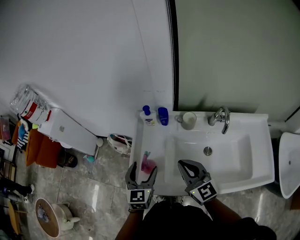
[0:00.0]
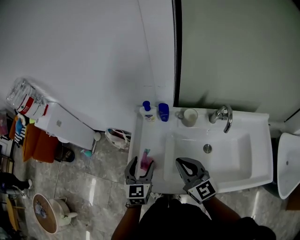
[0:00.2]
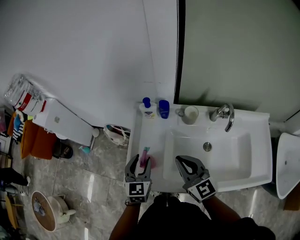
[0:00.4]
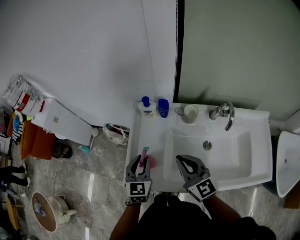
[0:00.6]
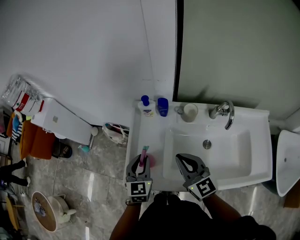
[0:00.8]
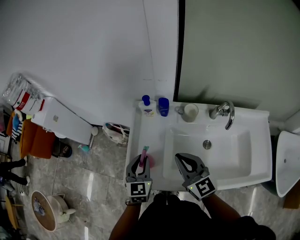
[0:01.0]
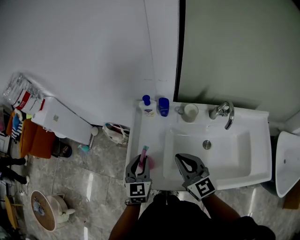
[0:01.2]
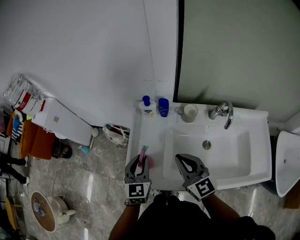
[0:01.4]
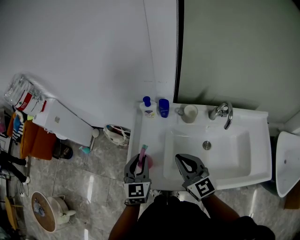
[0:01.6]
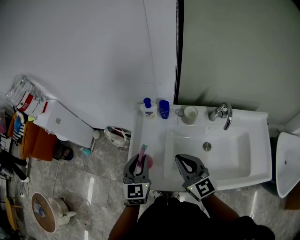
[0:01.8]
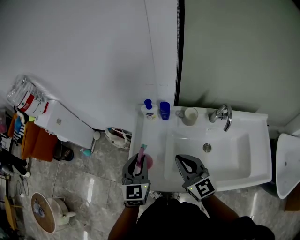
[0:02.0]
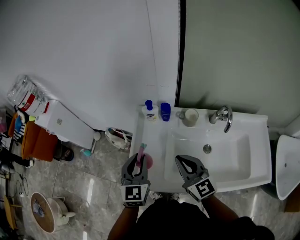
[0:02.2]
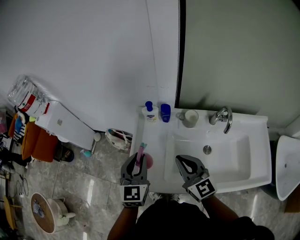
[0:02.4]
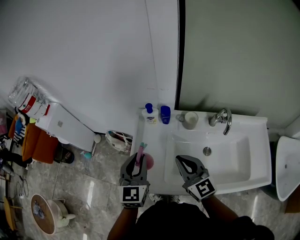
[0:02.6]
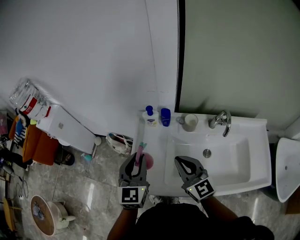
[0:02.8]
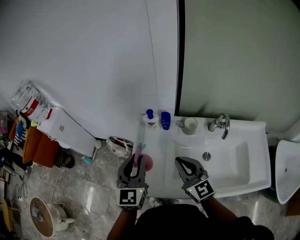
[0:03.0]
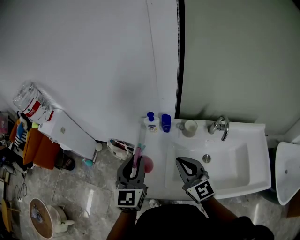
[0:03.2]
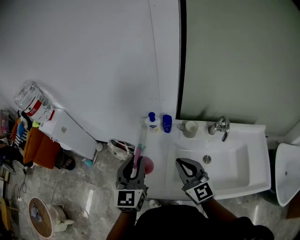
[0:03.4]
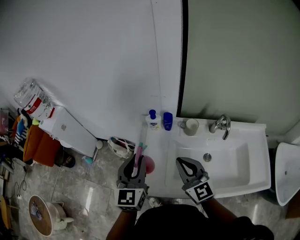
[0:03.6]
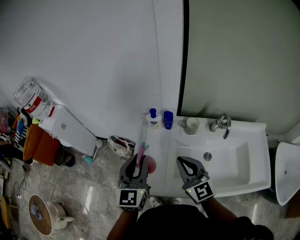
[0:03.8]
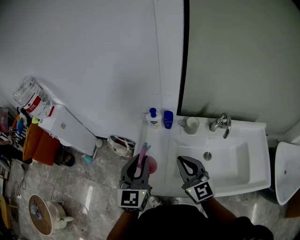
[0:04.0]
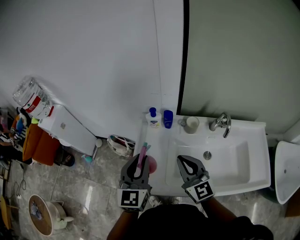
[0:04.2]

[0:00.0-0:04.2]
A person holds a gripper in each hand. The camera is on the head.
0:00.0 to 0:01.4: The left gripper closes up.
0:01.4 to 0:02.8: The left gripper goes approximately 10 cm upward.
0:02.8 to 0:04.2: The grippers make only small movements.

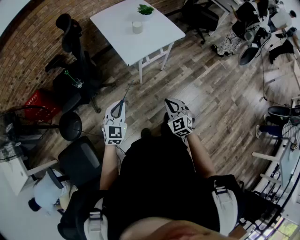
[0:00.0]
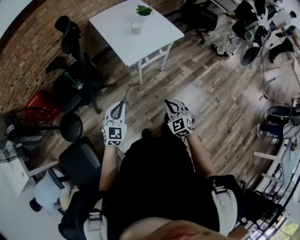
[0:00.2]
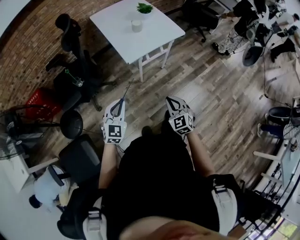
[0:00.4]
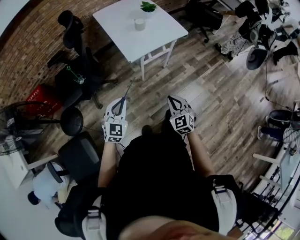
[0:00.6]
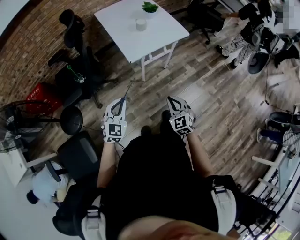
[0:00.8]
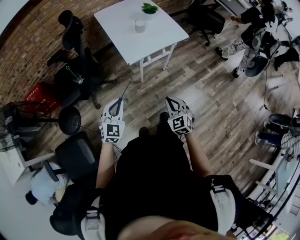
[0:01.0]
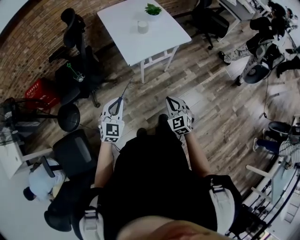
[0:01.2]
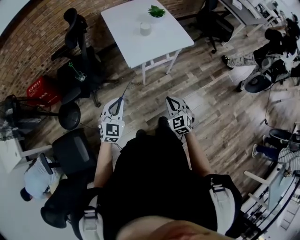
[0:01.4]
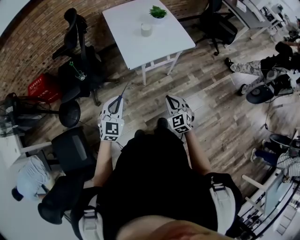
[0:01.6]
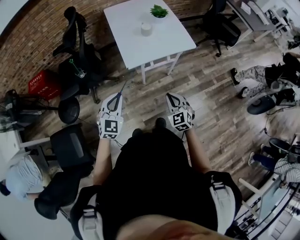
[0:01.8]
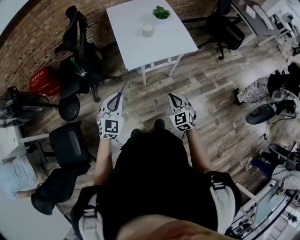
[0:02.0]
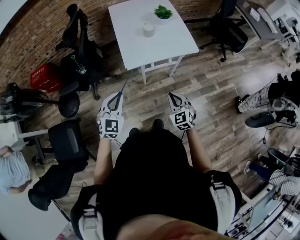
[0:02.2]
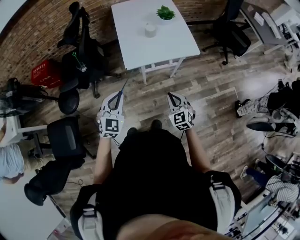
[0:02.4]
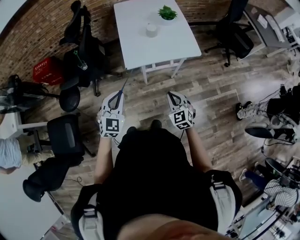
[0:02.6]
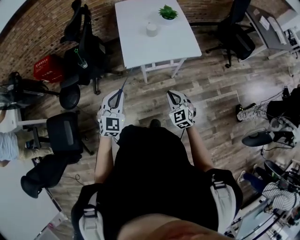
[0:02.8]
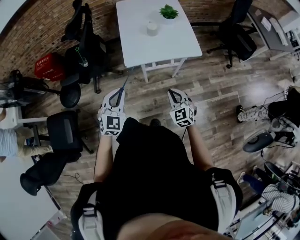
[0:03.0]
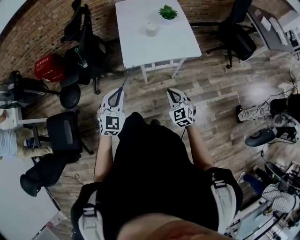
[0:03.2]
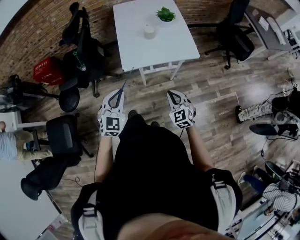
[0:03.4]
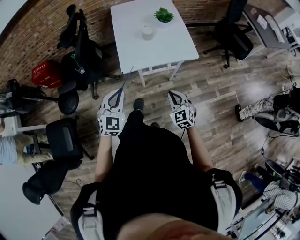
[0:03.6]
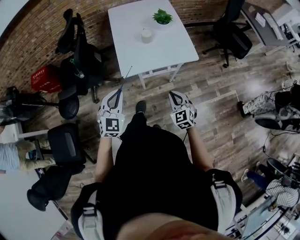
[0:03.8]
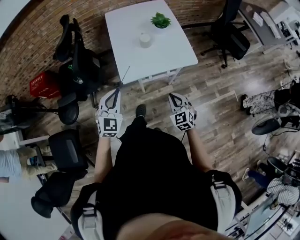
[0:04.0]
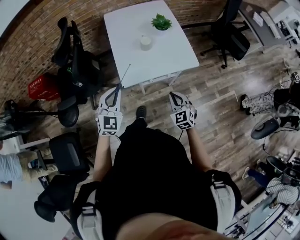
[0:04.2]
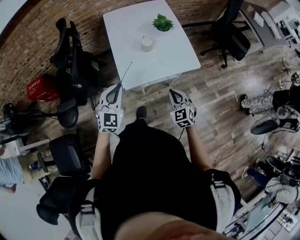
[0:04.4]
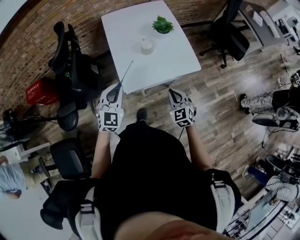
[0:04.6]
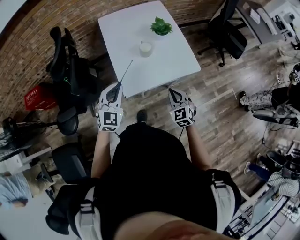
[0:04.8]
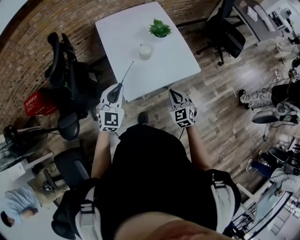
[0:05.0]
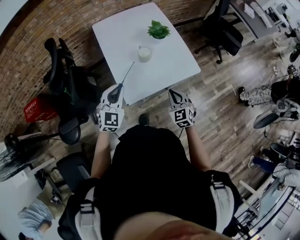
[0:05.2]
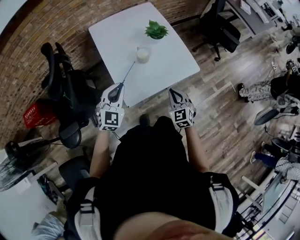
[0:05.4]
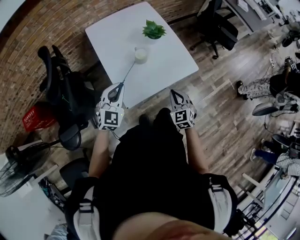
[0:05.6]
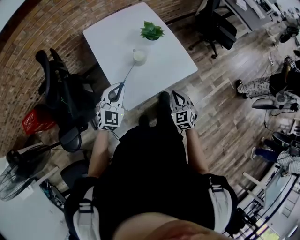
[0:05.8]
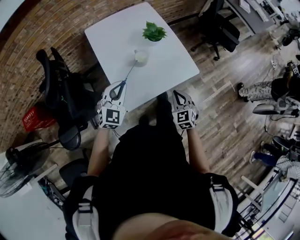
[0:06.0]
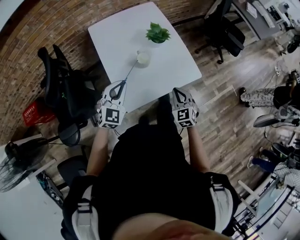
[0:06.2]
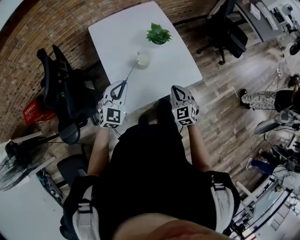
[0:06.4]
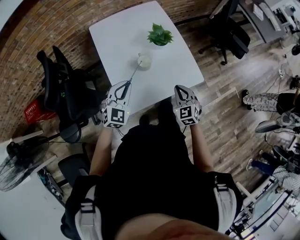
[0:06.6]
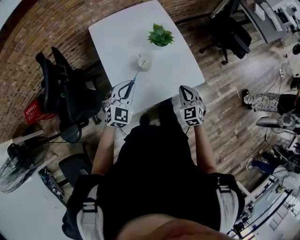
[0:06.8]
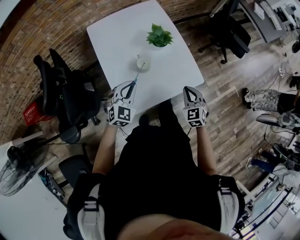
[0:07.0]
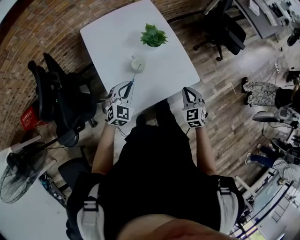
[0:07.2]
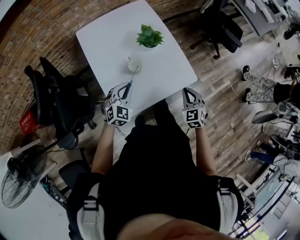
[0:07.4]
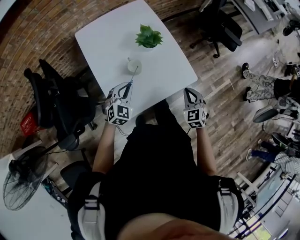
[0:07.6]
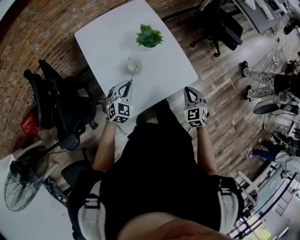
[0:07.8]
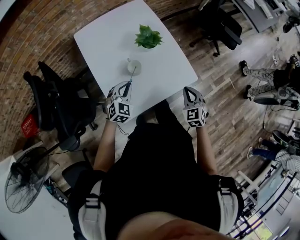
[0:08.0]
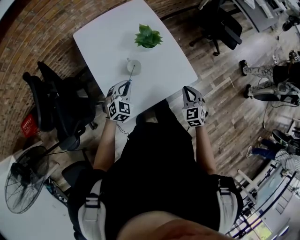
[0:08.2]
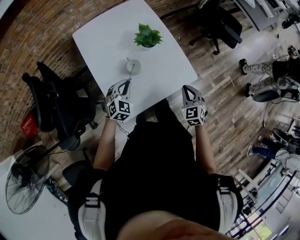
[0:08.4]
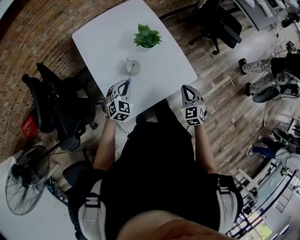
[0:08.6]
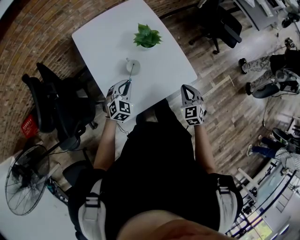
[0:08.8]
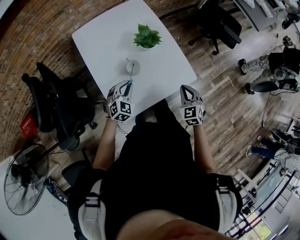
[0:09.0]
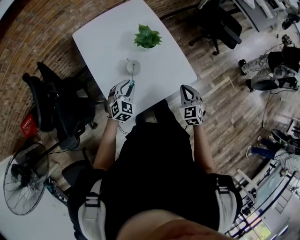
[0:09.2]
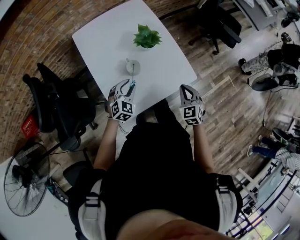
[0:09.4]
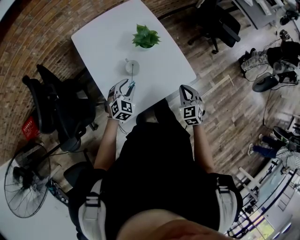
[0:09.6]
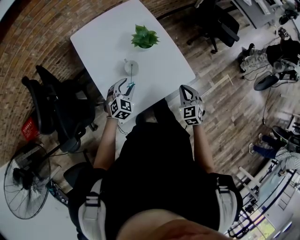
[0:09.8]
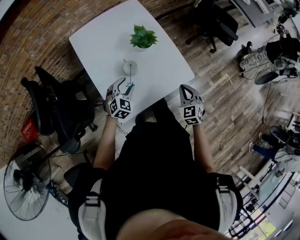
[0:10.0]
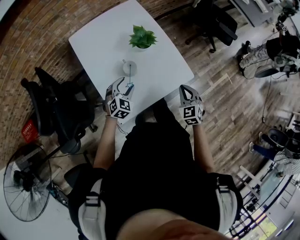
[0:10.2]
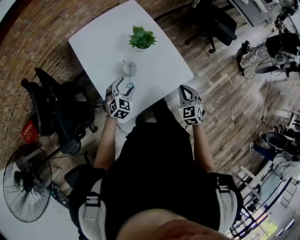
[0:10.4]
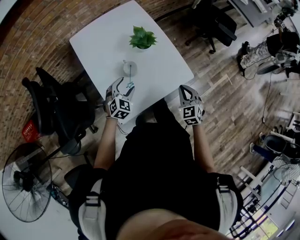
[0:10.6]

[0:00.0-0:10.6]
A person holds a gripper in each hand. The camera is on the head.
0:00.0 to 0:01.6: The right gripper goes roughly 15 cm forward and to the right. The left gripper moves to the right and forward, some 10 cm.
0:01.6 to 0:03.0: The left gripper moves to the right, about 10 cm; the right gripper goes about 15 cm to the right and forward.
0:03.0 to 0:04.6: Both grippers travel together forward, some 20 cm.
0:04.6 to 0:06.0: The right gripper heads forward, covering roughly 10 cm, while the left gripper goes approximately 15 cm forward.
0:06.0 to 0:07.6: The right gripper travels forward and to the right by roughly 15 cm; the left gripper travels forward, downward and to the right by about 15 cm.
0:07.6 to 0:09.0: The grippers stay close to where they were, moving slightly.
0:09.0 to 0:10.6: The left gripper opens its fingers.

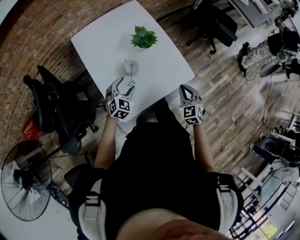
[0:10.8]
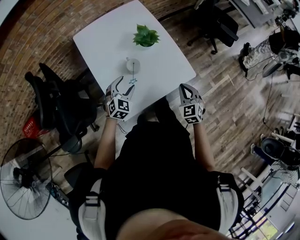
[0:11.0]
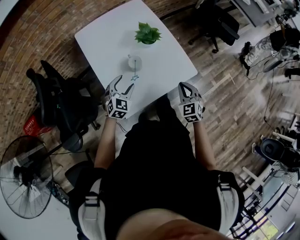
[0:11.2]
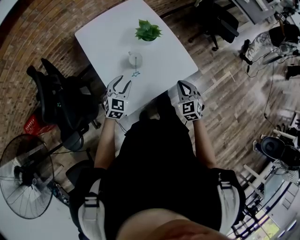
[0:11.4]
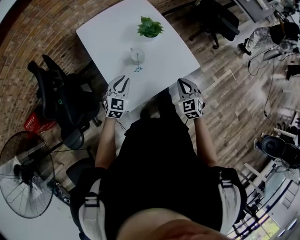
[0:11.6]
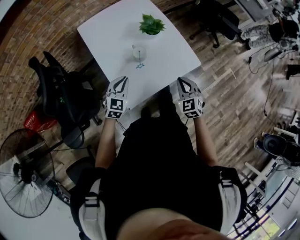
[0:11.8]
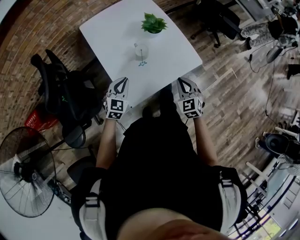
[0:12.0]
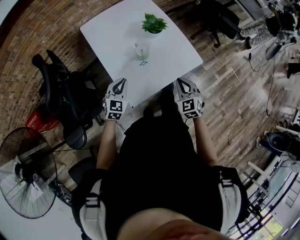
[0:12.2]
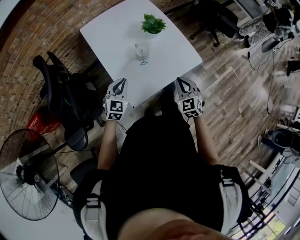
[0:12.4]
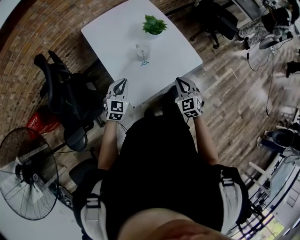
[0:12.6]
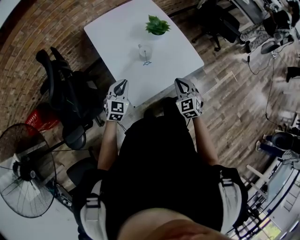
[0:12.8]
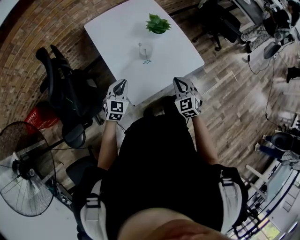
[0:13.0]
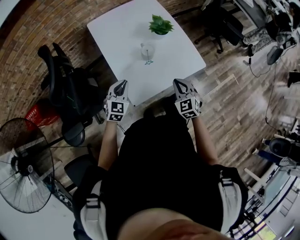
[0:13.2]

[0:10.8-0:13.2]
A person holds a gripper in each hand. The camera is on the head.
0:10.8 to 0:12.0: Both grippers travel together backward and to the left, roughly 10 cm. The left gripper closes up.
0:12.0 to 0:13.2: There are only small adjustments of the grippers.

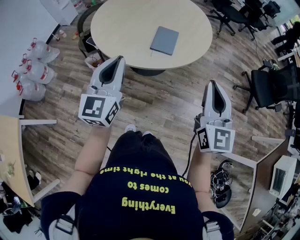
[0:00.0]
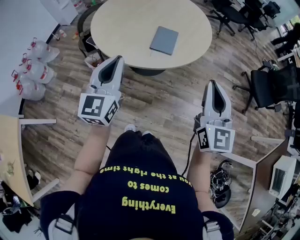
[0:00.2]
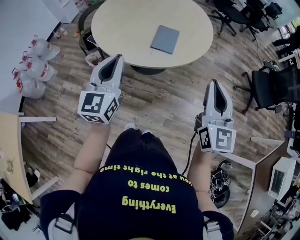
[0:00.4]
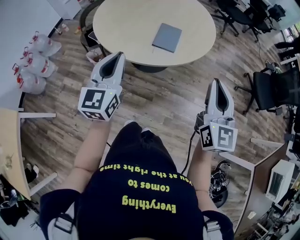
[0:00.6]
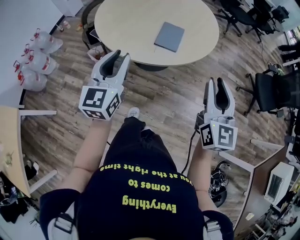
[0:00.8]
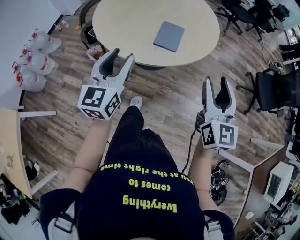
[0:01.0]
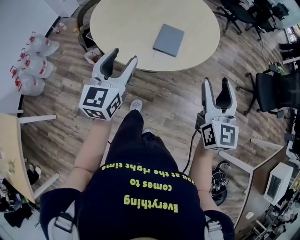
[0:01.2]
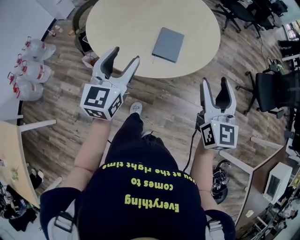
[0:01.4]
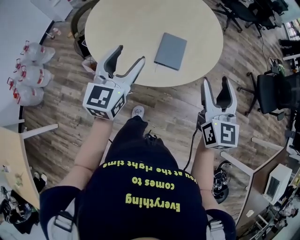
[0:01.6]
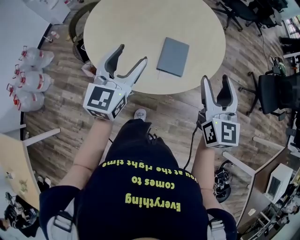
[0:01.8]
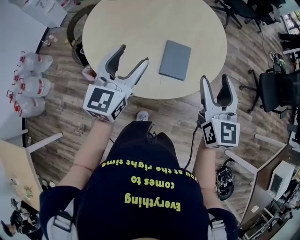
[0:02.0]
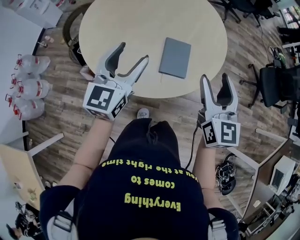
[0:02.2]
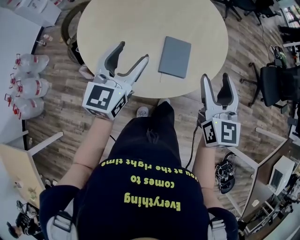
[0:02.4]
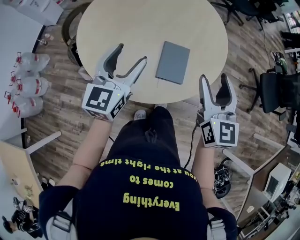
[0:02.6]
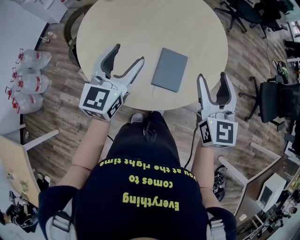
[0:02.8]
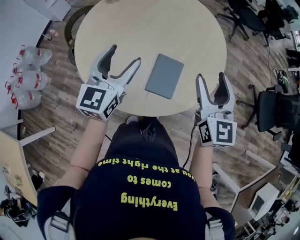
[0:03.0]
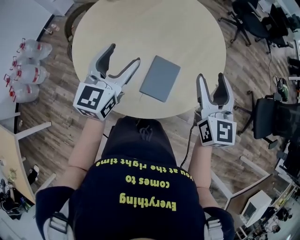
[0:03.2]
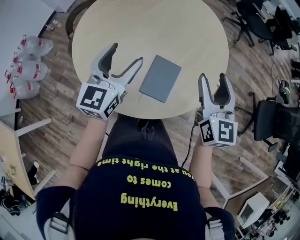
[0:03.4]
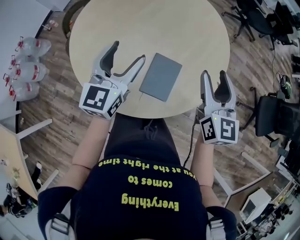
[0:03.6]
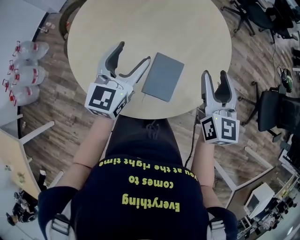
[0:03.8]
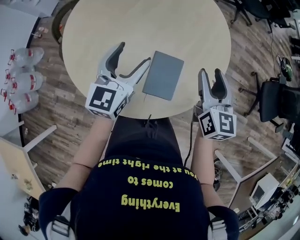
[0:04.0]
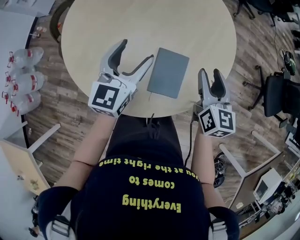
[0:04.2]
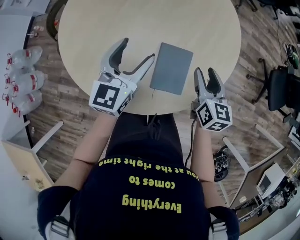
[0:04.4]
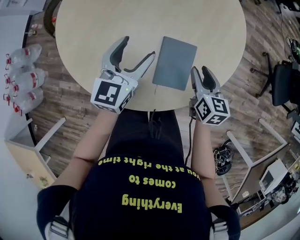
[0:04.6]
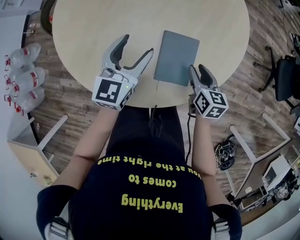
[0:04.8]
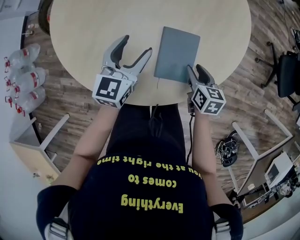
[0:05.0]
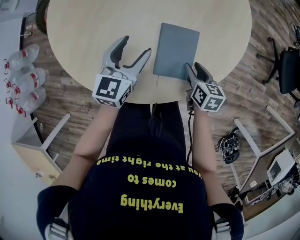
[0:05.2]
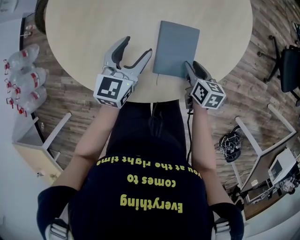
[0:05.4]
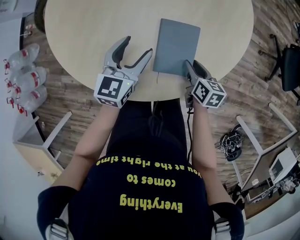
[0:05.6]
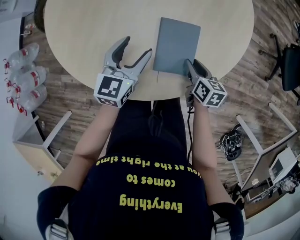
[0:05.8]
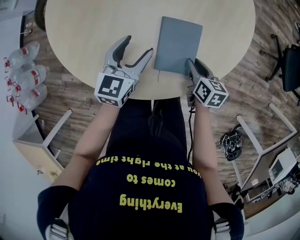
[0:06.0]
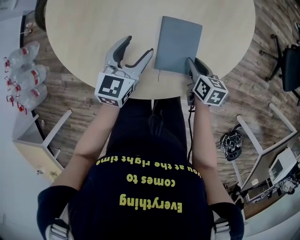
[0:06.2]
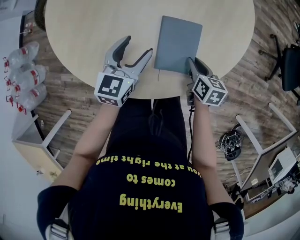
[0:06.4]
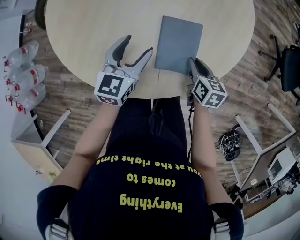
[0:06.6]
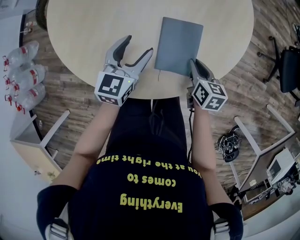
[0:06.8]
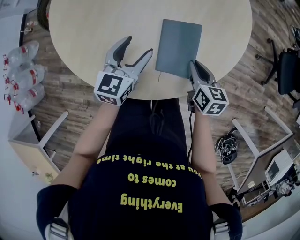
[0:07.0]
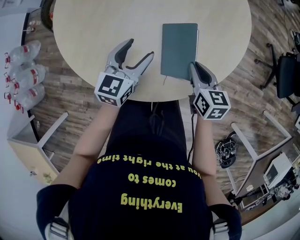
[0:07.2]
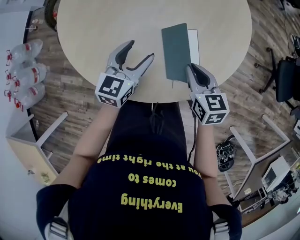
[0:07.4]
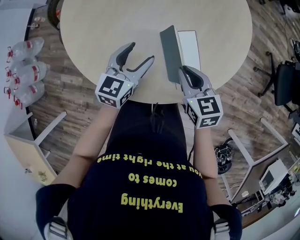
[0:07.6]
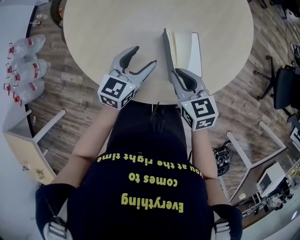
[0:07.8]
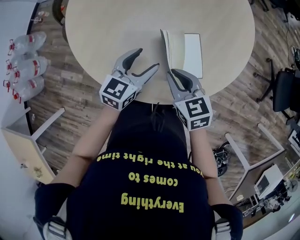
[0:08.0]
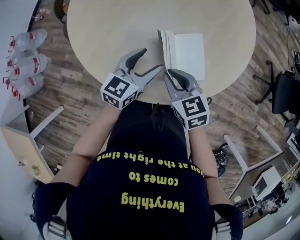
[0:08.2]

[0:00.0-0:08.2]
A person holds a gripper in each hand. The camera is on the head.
0:00.0 to 0:01.6: Both grippers move forward, some 20 cm. The left gripper opens; the right gripper opens.
0:01.6 to 0:03.2: The two grippers go some 20 cm forward.
0:03.2 to 0:05.0: The left gripper travels downward by about 20 cm, while the right gripper goes some 30 cm downward, and angles its fingers downward, by roughly 40 degrees.
0:05.0 to 0:06.6: There are only small adjustments of the grippers.
0:06.6 to 0:08.2: The right gripper is displaced to the left and upward by about 20 cm, and changes its angle by some 40 degrees.
